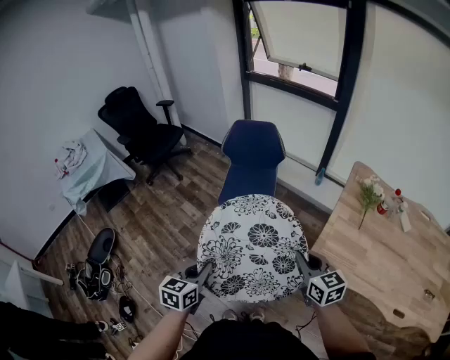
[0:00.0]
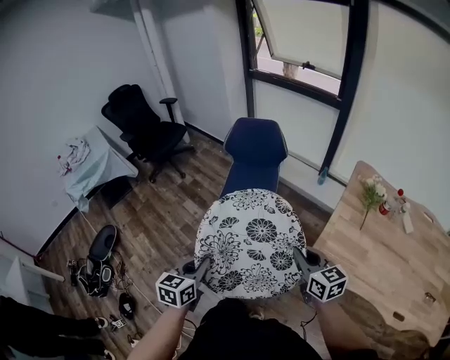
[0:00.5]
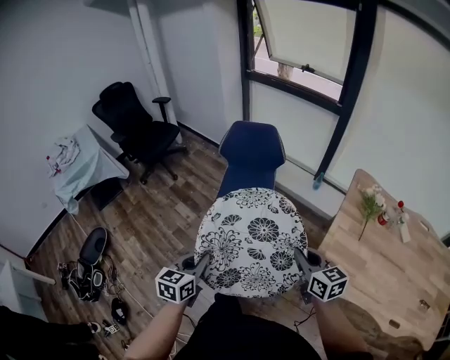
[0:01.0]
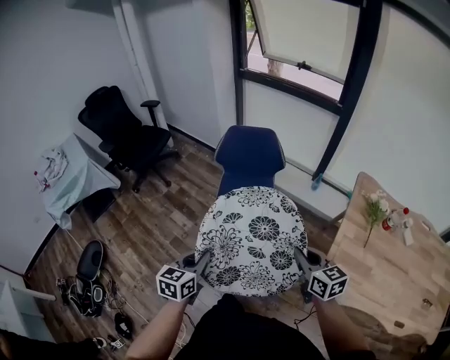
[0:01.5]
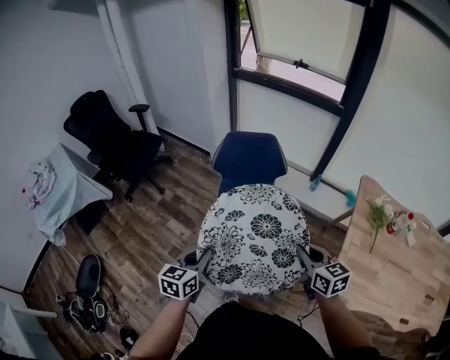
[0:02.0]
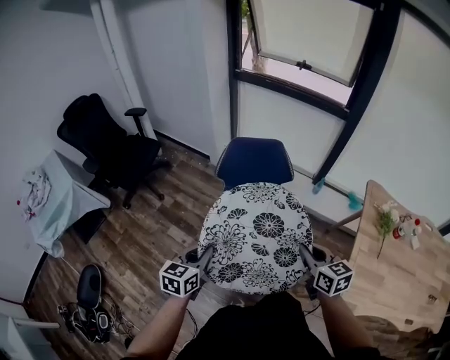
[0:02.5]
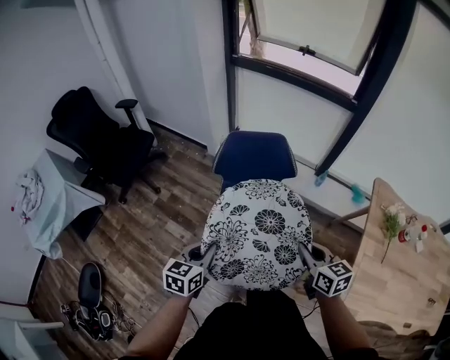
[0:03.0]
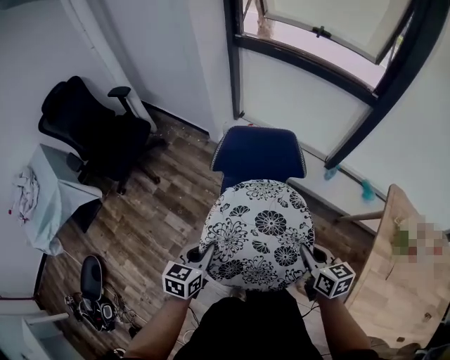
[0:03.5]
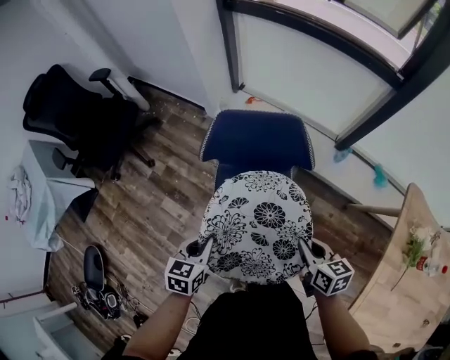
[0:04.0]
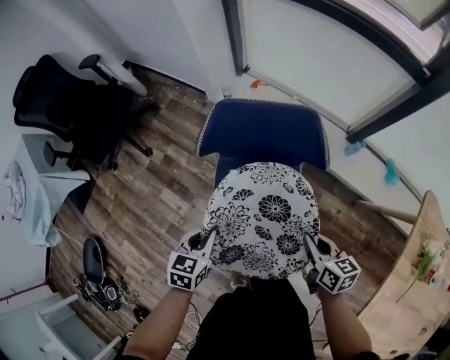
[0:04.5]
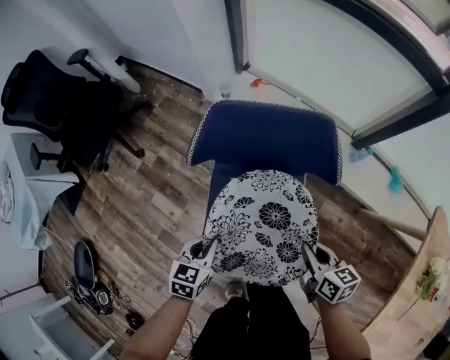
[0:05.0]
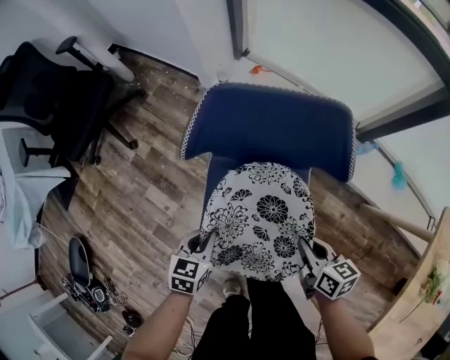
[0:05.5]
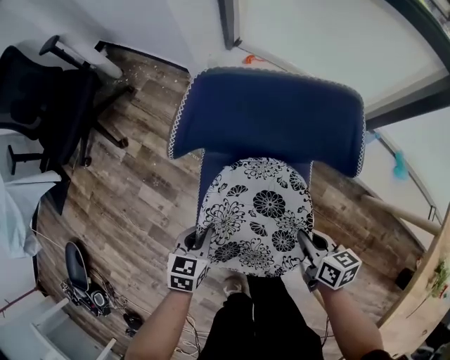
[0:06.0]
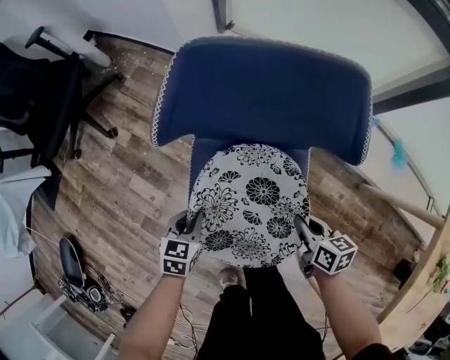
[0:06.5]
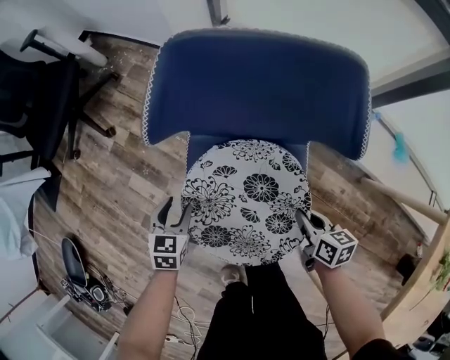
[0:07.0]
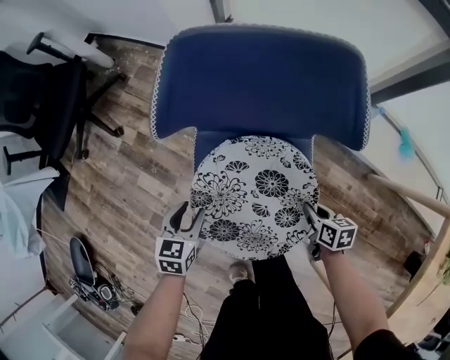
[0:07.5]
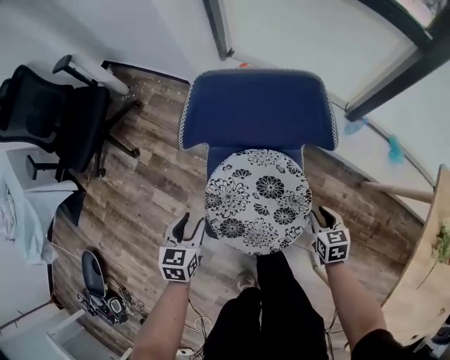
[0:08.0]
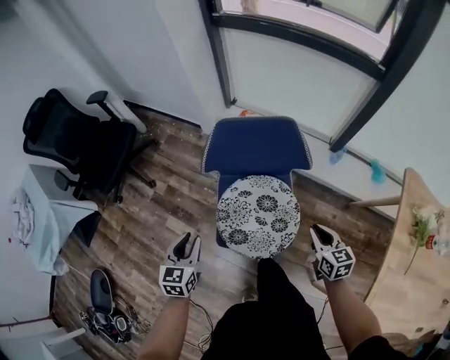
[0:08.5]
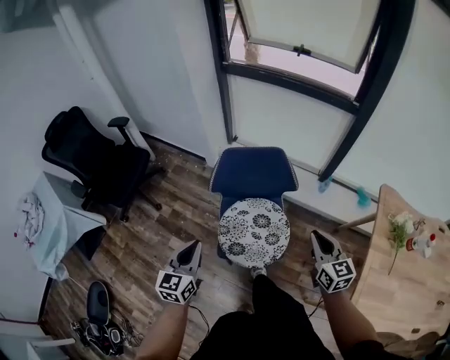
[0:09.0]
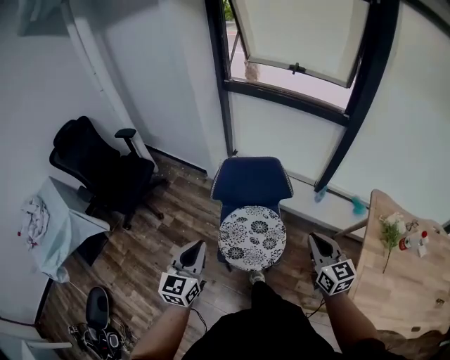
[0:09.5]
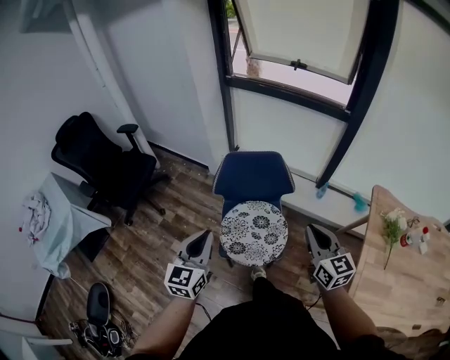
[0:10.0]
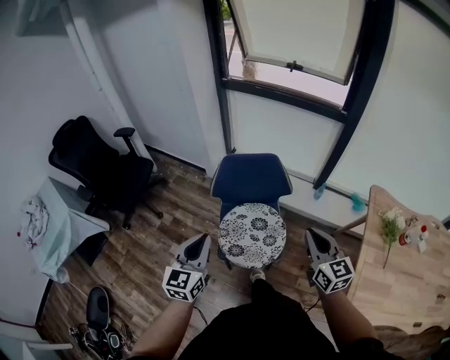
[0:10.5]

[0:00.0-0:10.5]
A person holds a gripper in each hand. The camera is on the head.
0:00.0 to 0:02.0: Both grippers move forward, approximately 25 cm.
0:02.0 to 0:04.0: The grippers both shift forward and downward by some 30 cm. The right gripper changes its angle by some 20 degrees.
0:04.0 to 0:06.5: The grippers both shift downward by roughly 30 cm.
0:06.5 to 0:08.5: Both grippers move upward, about 25 cm. The right gripper swivels about 30 degrees. The left gripper swivels approximately 20 degrees, and opens.
0:08.5 to 0:10.5: The grippers both shift upward by some 25 cm. The left gripper changes its angle by about 20 degrees, and closes its fingers, while the right gripper turns by some 30 degrees.

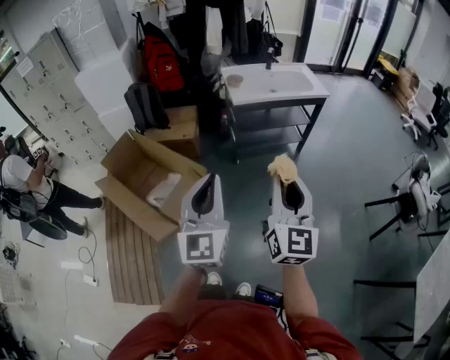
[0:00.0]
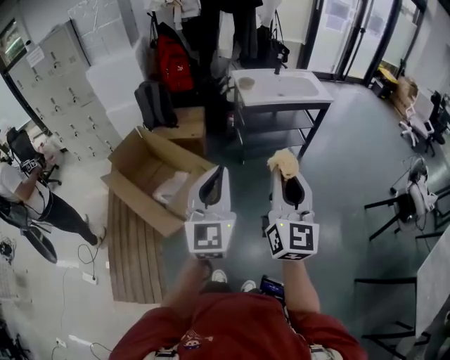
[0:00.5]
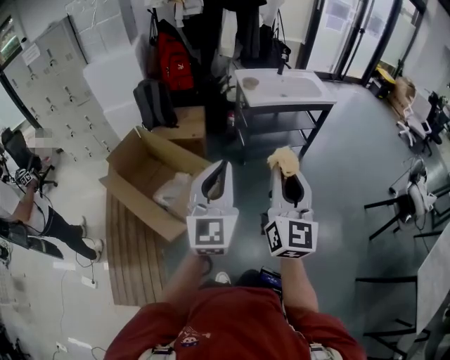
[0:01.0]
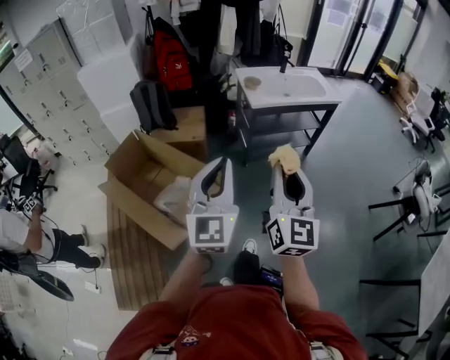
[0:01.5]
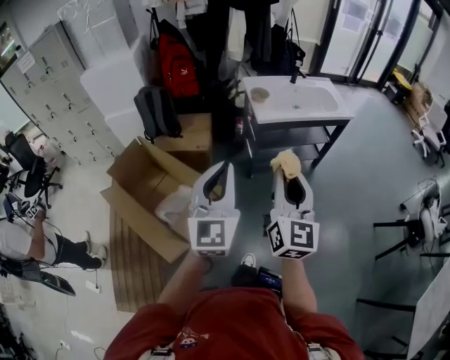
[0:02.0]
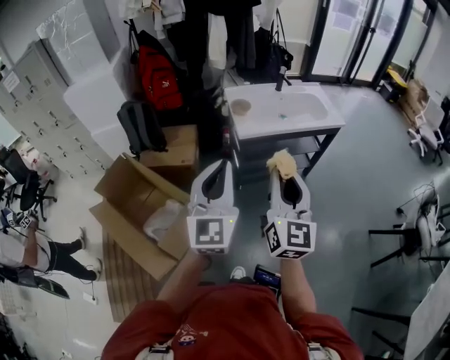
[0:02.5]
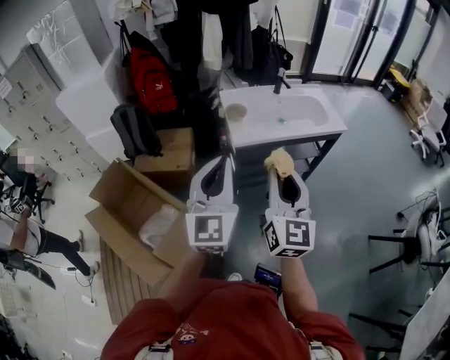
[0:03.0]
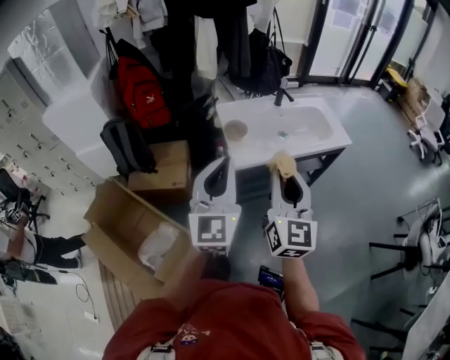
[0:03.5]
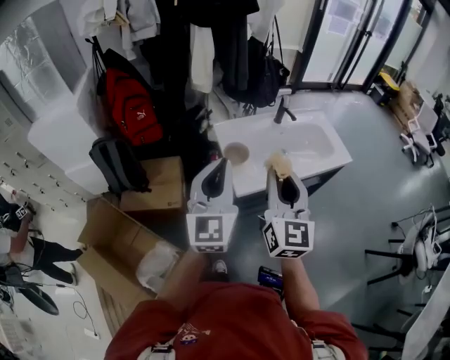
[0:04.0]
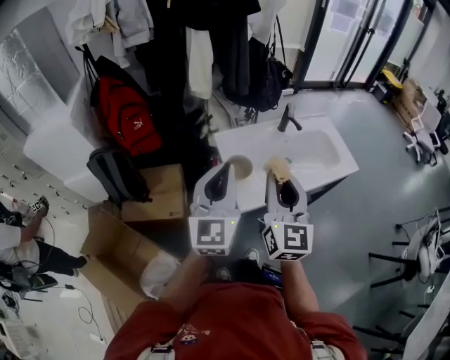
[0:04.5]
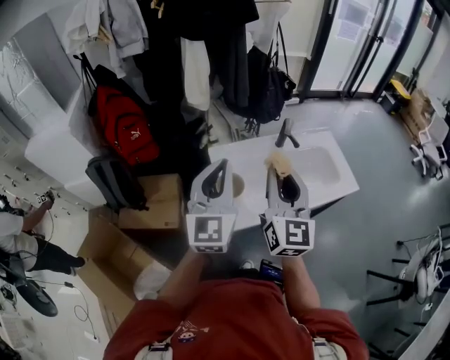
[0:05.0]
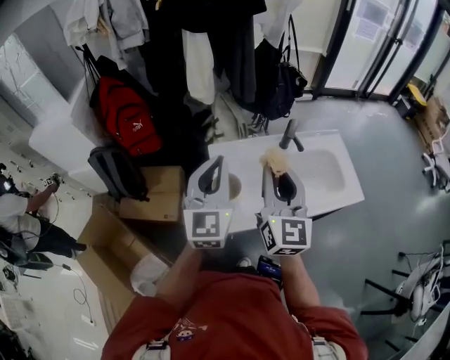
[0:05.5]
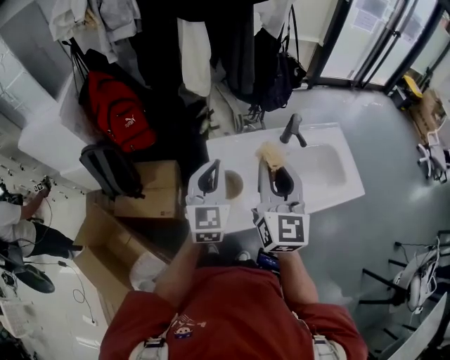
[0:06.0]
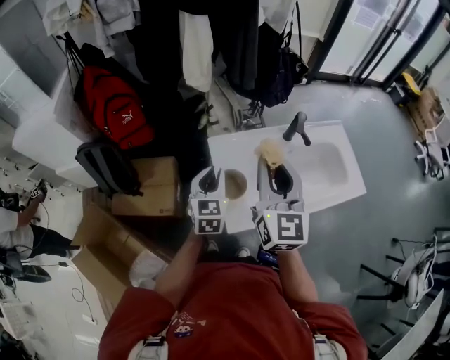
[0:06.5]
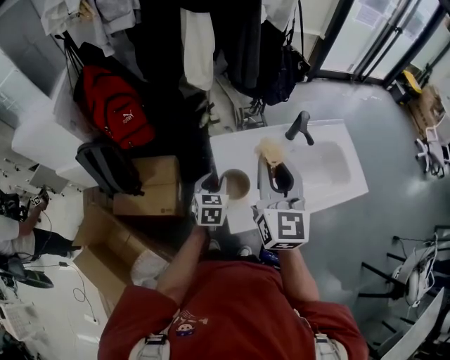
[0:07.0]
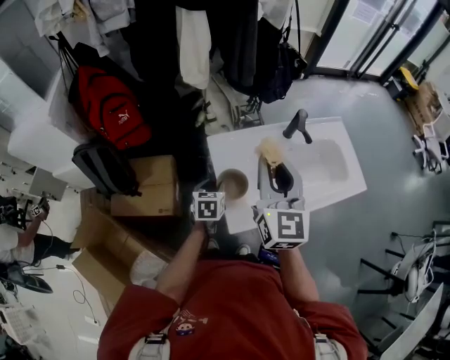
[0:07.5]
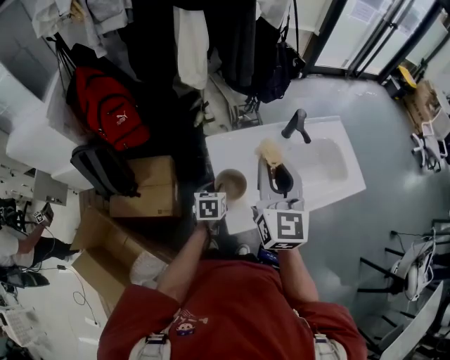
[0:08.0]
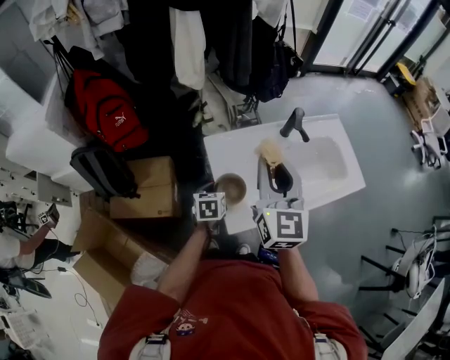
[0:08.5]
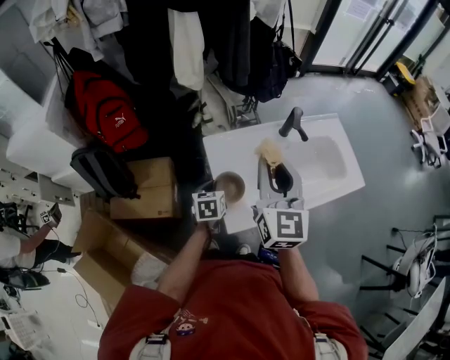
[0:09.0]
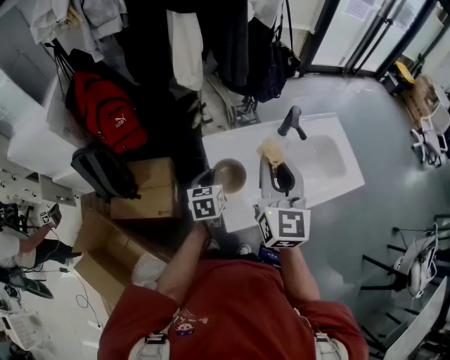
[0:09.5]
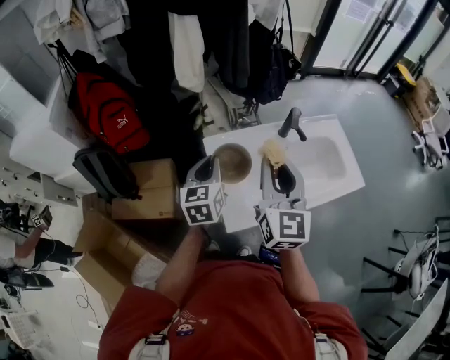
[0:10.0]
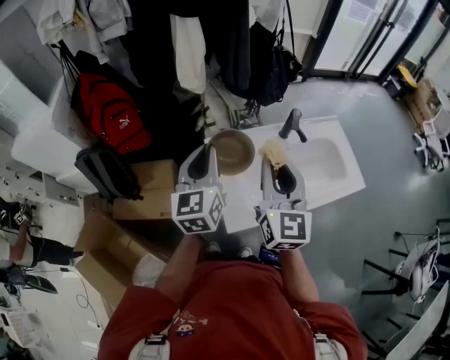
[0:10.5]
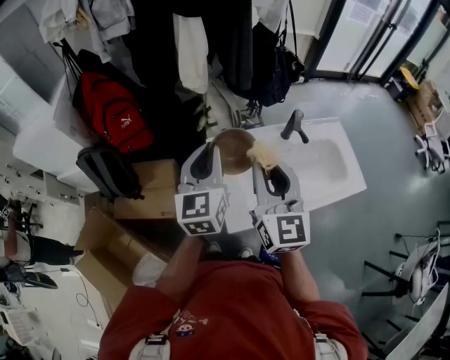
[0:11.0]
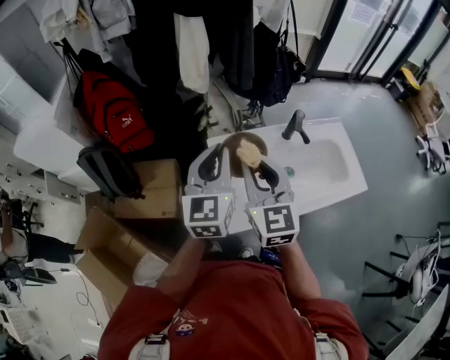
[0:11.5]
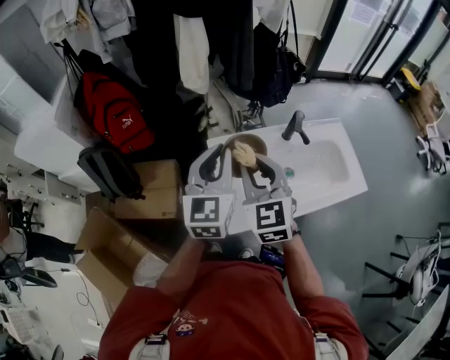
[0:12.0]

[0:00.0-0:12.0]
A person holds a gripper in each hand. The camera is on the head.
0:00.0 to 0:02.0: Both grippers move forward and to the left, about 20 cm.
0:02.0 to 0:04.0: The two grippers travel together, forward, some 50 cm.
0:04.0 to 0:06.0: The right gripper travels forward by approximately 25 cm; the left gripper goes roughly 25 cm forward and downward.
0:06.0 to 0:08.0: The right gripper moves roughly 5 cm; the left gripper moves downward, about 25 cm, points its fingers roughly 40 degrees further downward, and opens its fingers.
0:08.0 to 0:10.0: The left gripper is displaced upward by some 20 cm, and turns by about 30 degrees.
0:10.0 to 0:12.0: The right gripper heads to the left, covering about 5 cm, and rotates roughly 30 degrees; the left gripper moves upward, about 10 cm, and changes its angle by about 20 degrees.

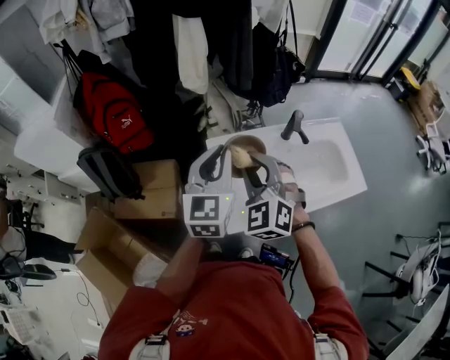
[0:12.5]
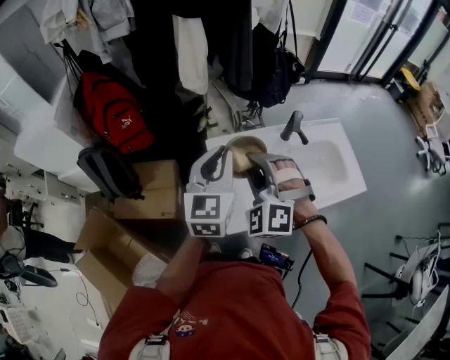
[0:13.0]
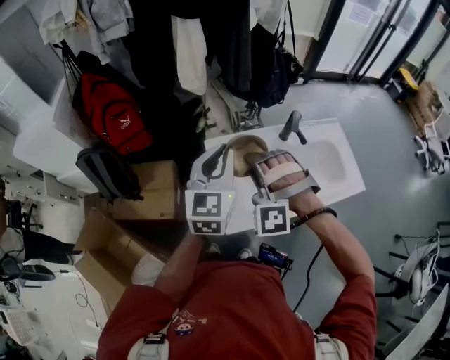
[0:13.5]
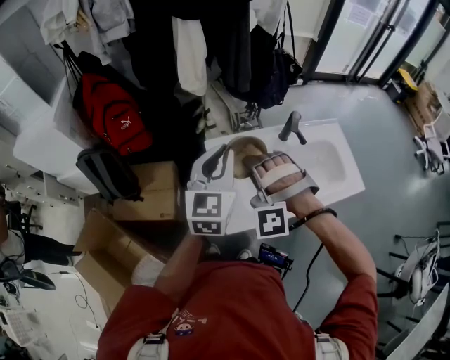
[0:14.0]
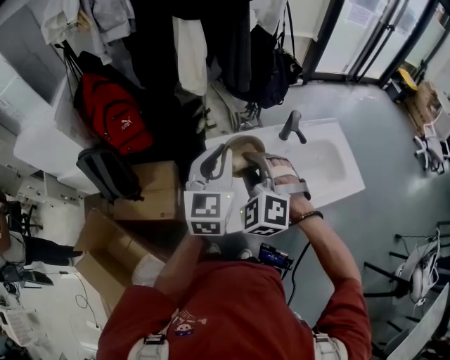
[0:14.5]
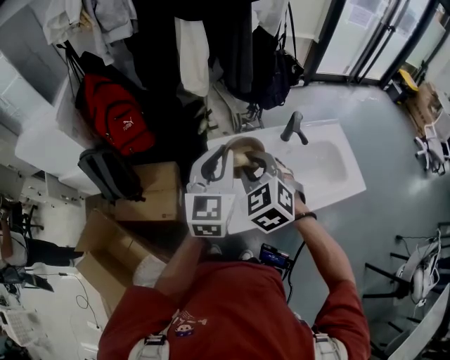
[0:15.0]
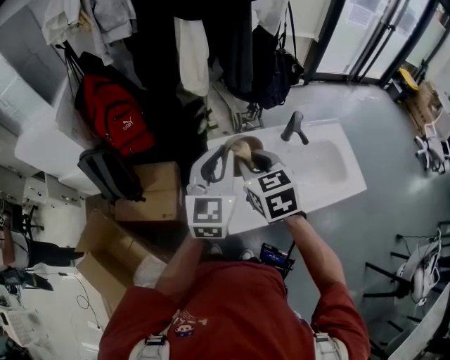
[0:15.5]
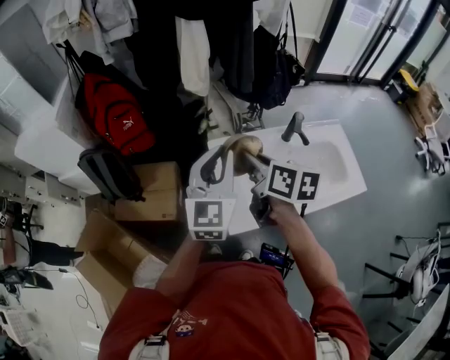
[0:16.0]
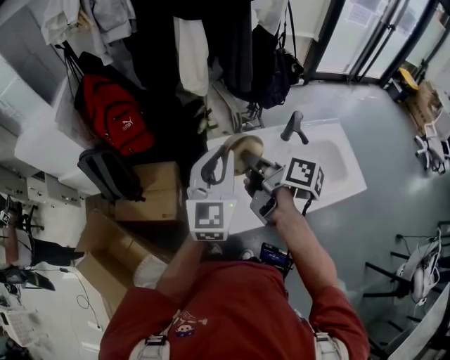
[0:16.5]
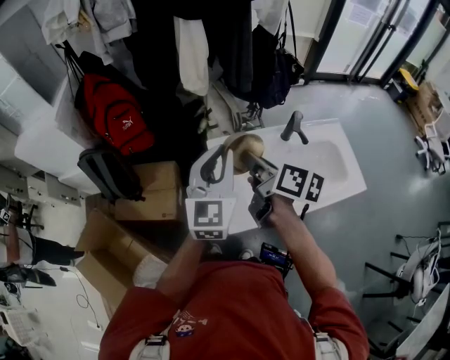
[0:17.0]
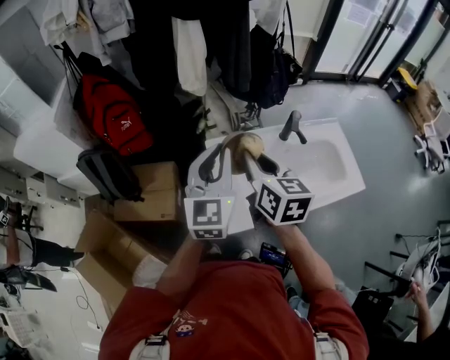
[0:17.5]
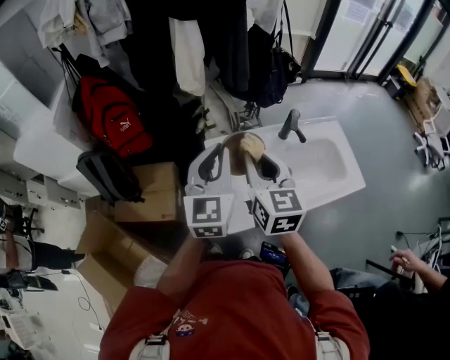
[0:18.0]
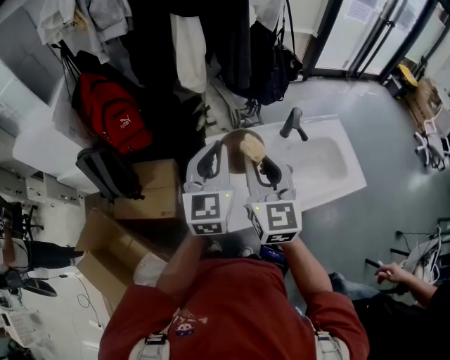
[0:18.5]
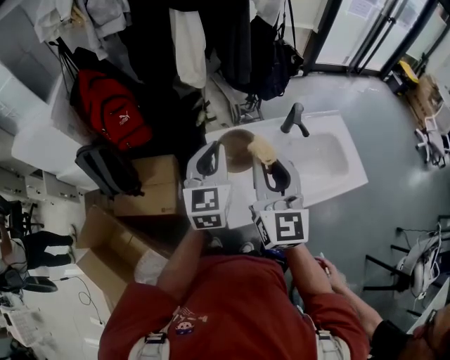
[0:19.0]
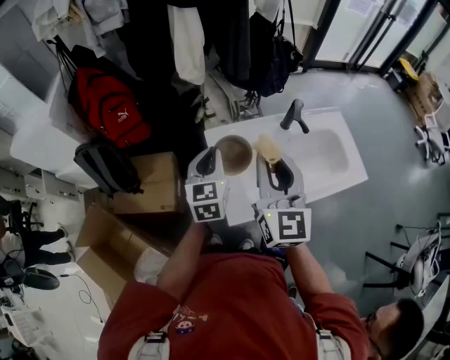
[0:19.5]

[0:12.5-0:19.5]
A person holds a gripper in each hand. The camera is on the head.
0:14.5 to 0:16.0: The right gripper rolls clockwise, seen from behind, by approximately 90 degrees.
0:16.0 to 0:17.5: The right gripper rotates approximately 20 degrees.
0:17.5 to 0:19.5: The left gripper heads downward, covering roughly 10 cm. The right gripper ends up roughly 5 cm from where it was, and changes its angle by roughly 30 degrees.
